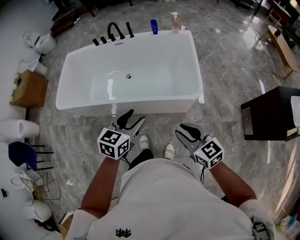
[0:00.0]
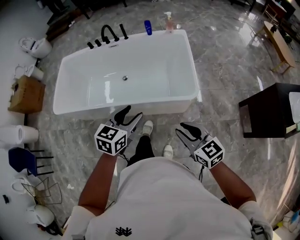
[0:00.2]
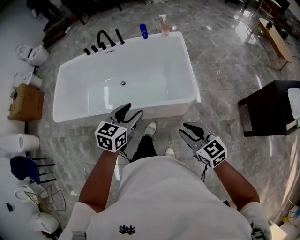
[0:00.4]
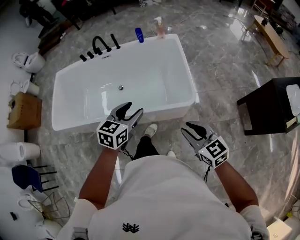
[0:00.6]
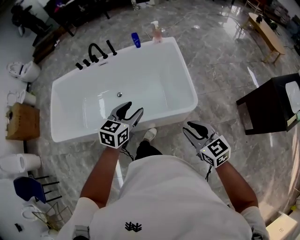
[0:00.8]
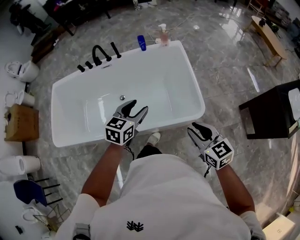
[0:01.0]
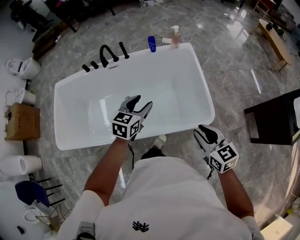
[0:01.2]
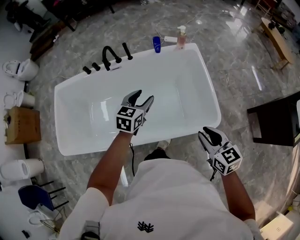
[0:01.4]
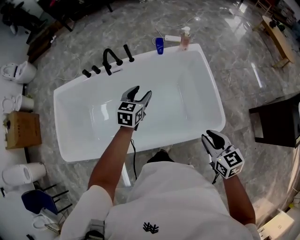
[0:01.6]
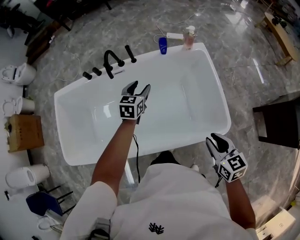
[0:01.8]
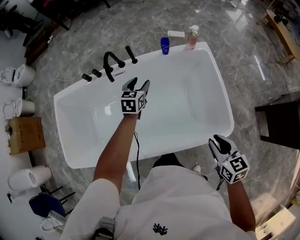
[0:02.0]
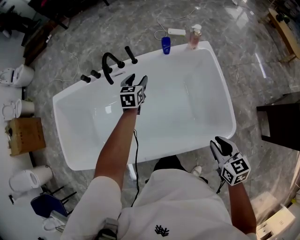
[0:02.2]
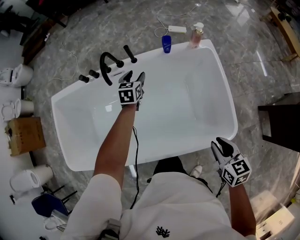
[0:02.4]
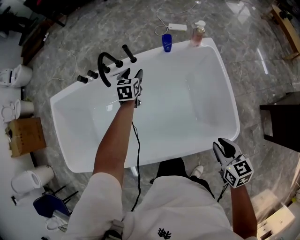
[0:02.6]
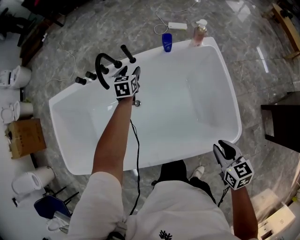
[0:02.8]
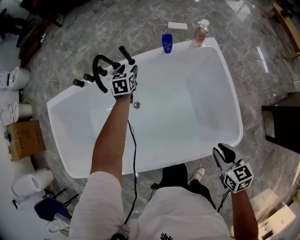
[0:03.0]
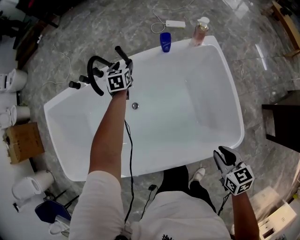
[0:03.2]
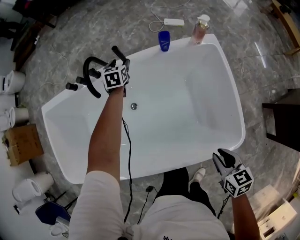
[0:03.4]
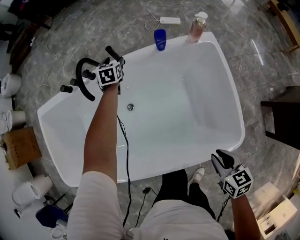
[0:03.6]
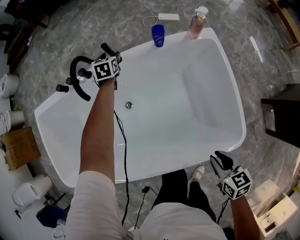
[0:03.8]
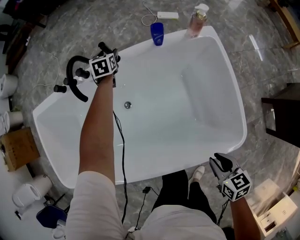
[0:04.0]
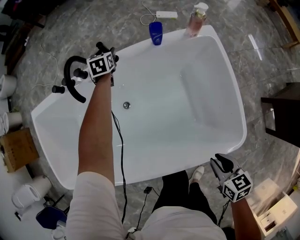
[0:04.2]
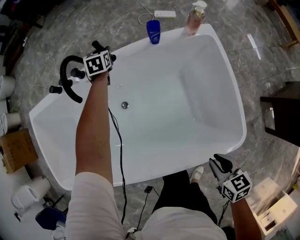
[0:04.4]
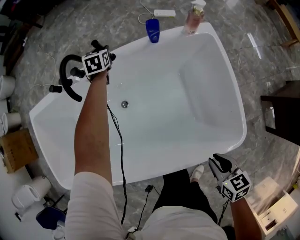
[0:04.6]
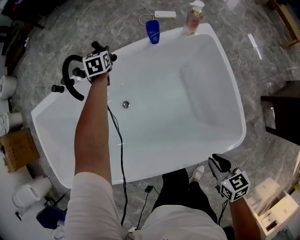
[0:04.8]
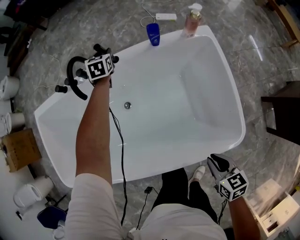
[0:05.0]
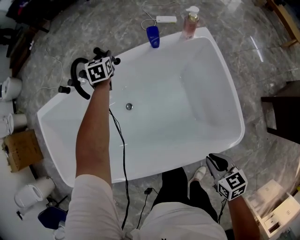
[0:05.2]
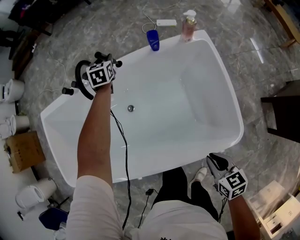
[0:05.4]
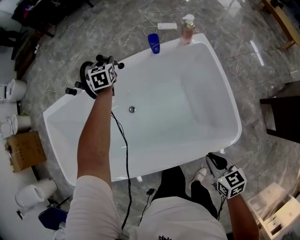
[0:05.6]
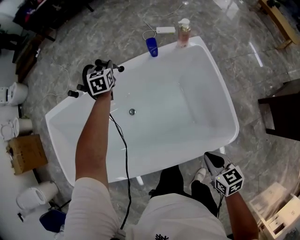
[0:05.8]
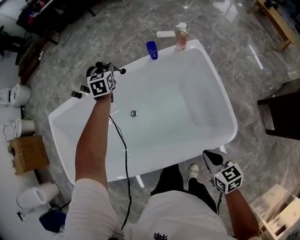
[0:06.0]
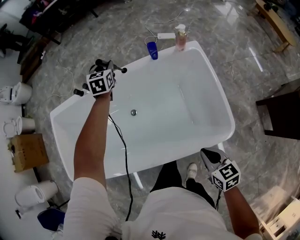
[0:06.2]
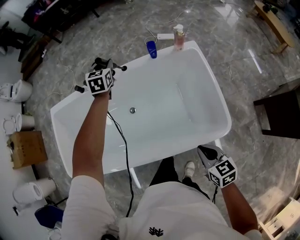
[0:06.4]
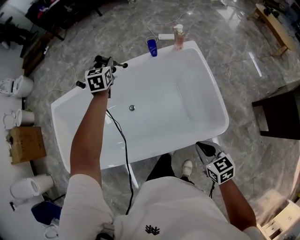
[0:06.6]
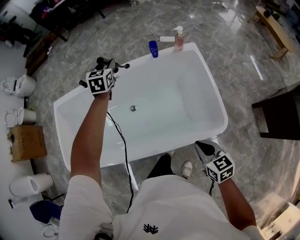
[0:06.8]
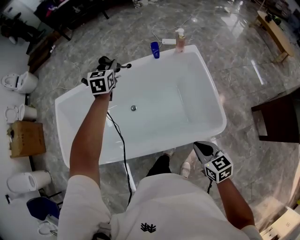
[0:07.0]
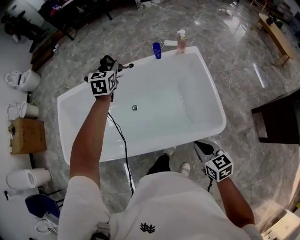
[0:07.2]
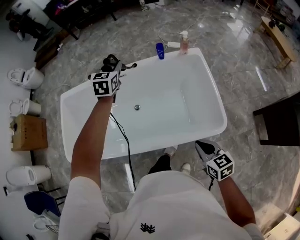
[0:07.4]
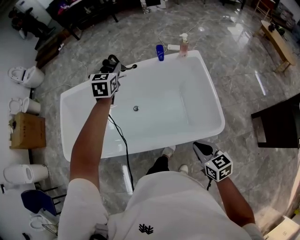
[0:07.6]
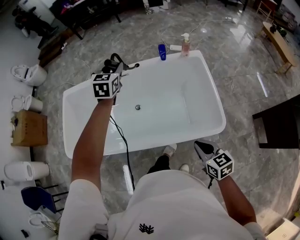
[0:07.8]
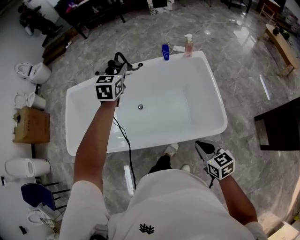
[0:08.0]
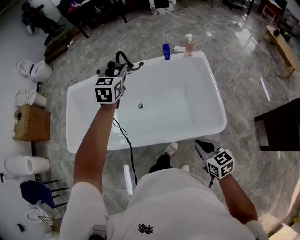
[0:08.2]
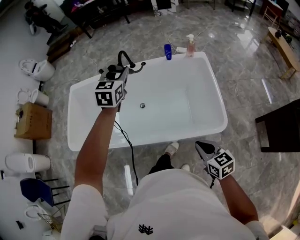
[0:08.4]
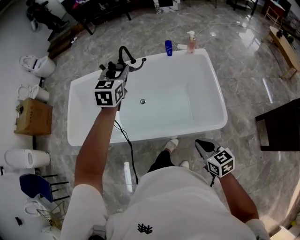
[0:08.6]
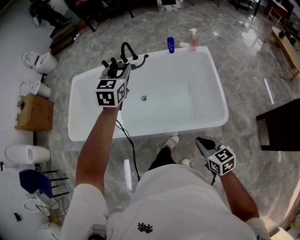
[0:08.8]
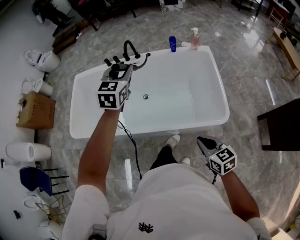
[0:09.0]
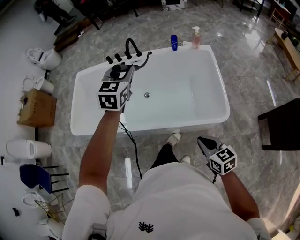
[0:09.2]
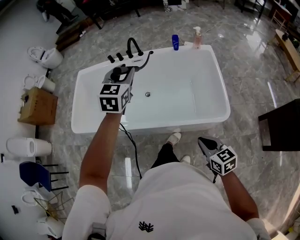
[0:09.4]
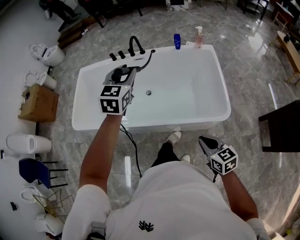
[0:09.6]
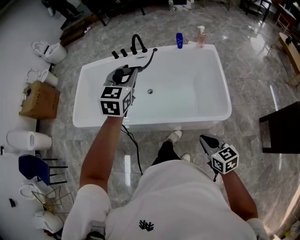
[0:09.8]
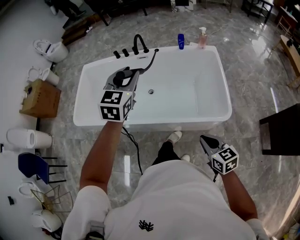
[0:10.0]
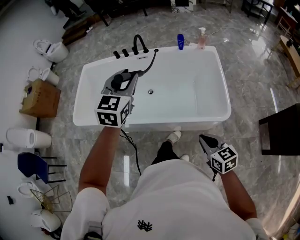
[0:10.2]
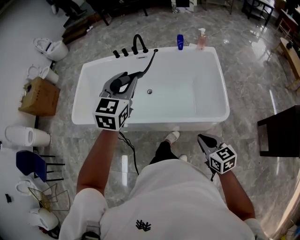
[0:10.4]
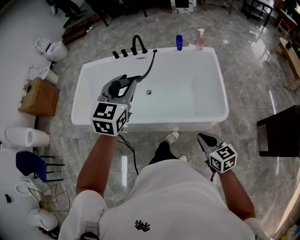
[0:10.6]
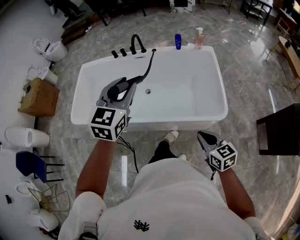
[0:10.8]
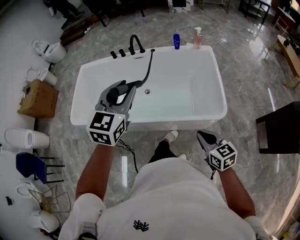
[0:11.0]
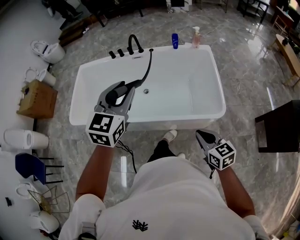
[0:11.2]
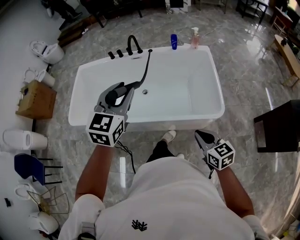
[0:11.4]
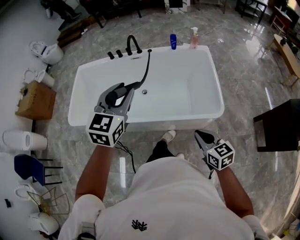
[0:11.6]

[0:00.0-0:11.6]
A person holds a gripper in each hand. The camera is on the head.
0:00.0 to 0:01.4: Both grippers travel together forward, about 35 cm. The right gripper changes its angle by about 20 degrees.
0:01.4 to 0:02.8: The right gripper moves forward and downward, approximately 20 cm. The left gripper is displaced forward and downward by about 40 cm.
0:02.8 to 0:04.4: The right gripper shifts some 10 cm downward, while the left gripper travels forward and downward by approximately 20 cm.
0:04.4 to 0:05.8: The right gripper shifts about 10 cm upward, and closes its fingers, while the left gripper shifts roughly 20 cm upward and backward.
0:05.8 to 0:07.2: The left gripper is displaced backward and upward by about 30 cm. The right gripper goes roughly 15 cm backward and upward.
0:07.2 to 0:08.8: The right gripper is displaced backward by approximately 10 cm; the left gripper is displaced backward and upward by approximately 25 cm.
0:08.8 to 0:10.2: The left gripper travels backward by approximately 15 cm. Meanwhile the right gripper is displaced backward by about 5 cm.
0:10.2 to 0:11.6: The left gripper moves backward, roughly 10 cm.

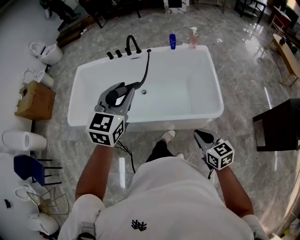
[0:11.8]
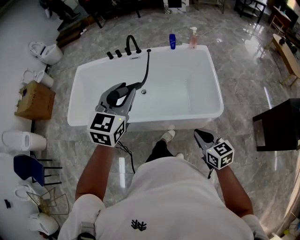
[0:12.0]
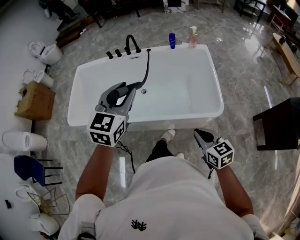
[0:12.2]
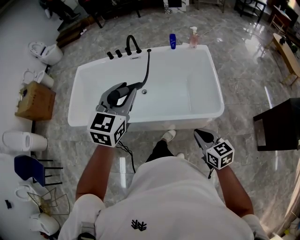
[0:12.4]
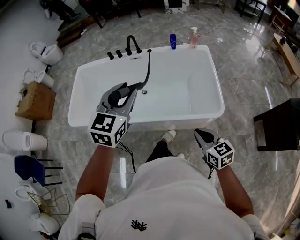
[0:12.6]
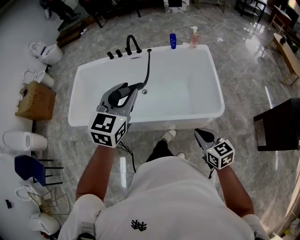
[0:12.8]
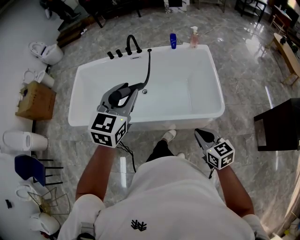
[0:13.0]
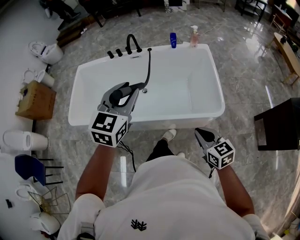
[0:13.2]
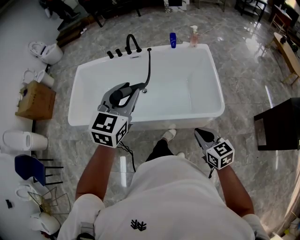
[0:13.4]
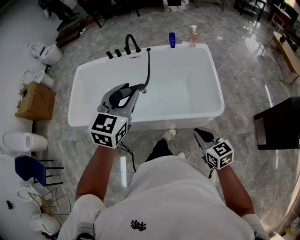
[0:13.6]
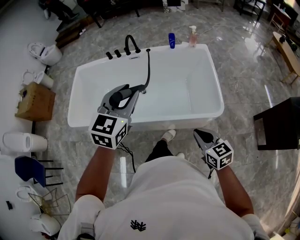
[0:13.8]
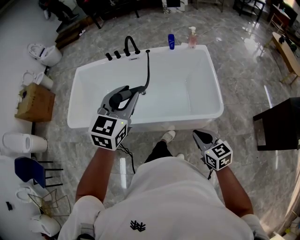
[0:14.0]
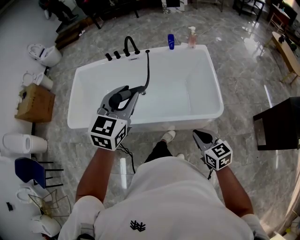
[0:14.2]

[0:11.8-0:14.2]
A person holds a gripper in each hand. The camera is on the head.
0:11.8 to 0:13.0: Both grippers stay about where they are.
0:13.0 to 0:14.2: Neither gripper changes place.

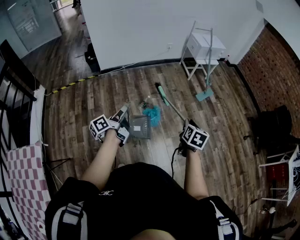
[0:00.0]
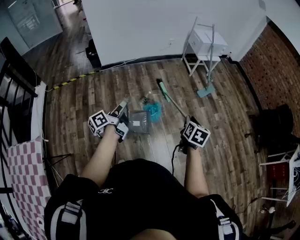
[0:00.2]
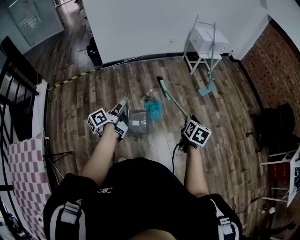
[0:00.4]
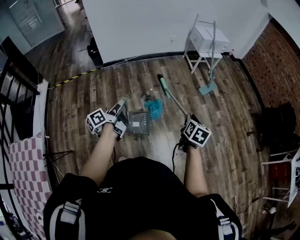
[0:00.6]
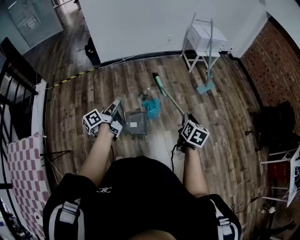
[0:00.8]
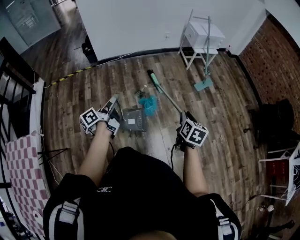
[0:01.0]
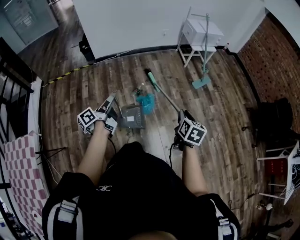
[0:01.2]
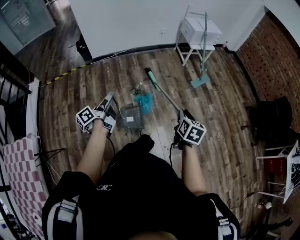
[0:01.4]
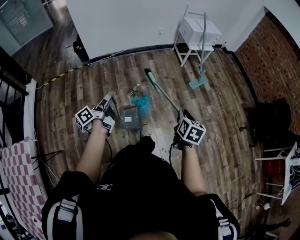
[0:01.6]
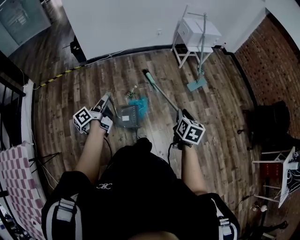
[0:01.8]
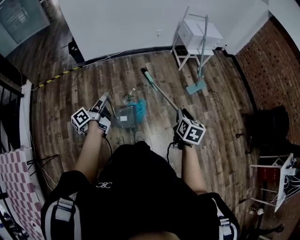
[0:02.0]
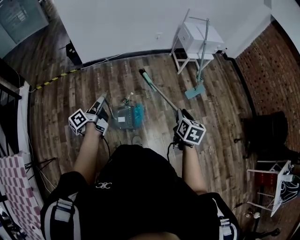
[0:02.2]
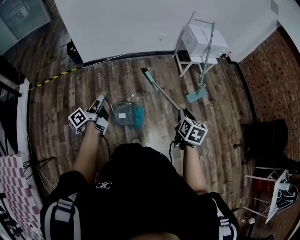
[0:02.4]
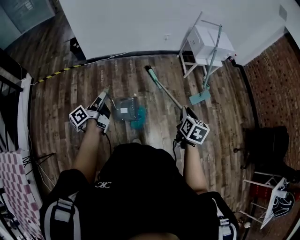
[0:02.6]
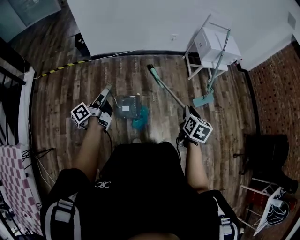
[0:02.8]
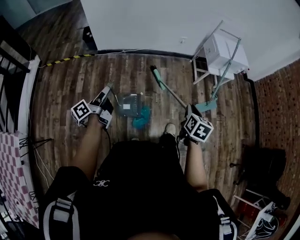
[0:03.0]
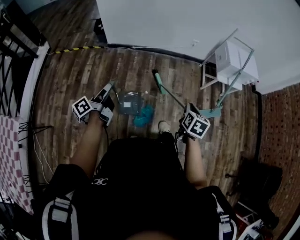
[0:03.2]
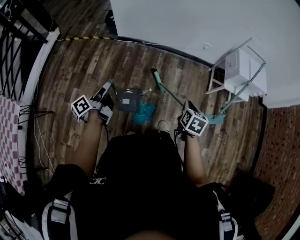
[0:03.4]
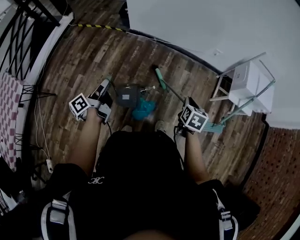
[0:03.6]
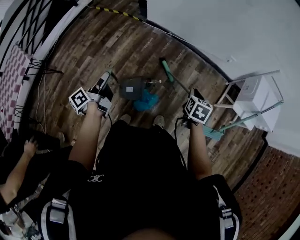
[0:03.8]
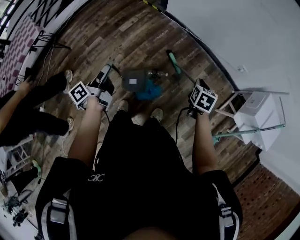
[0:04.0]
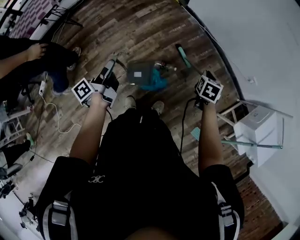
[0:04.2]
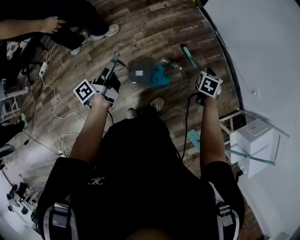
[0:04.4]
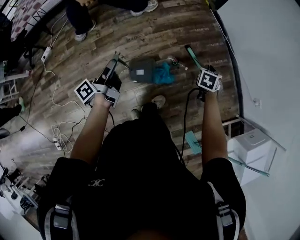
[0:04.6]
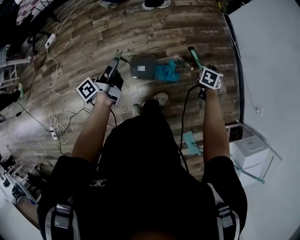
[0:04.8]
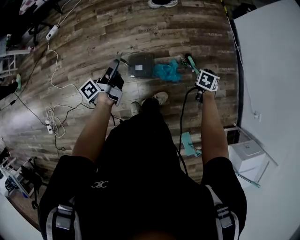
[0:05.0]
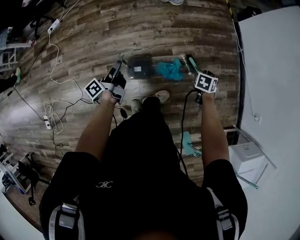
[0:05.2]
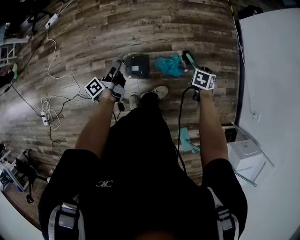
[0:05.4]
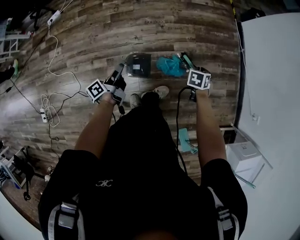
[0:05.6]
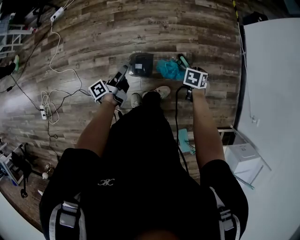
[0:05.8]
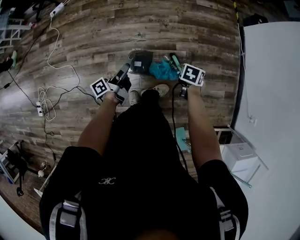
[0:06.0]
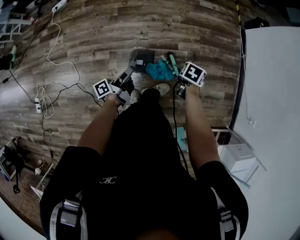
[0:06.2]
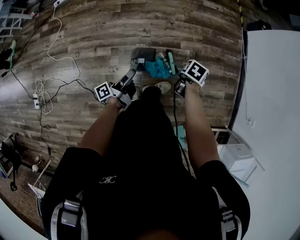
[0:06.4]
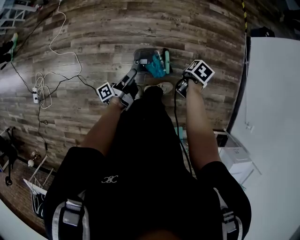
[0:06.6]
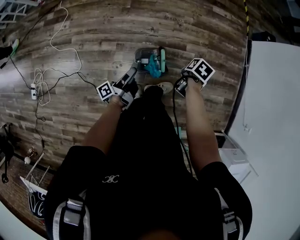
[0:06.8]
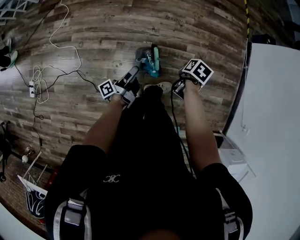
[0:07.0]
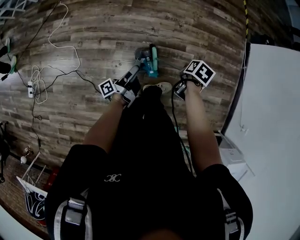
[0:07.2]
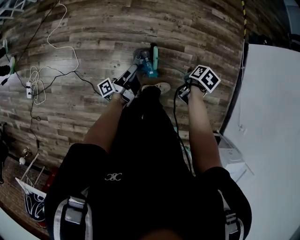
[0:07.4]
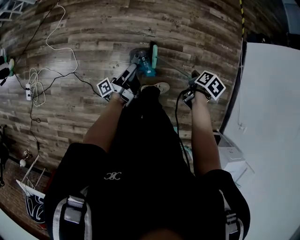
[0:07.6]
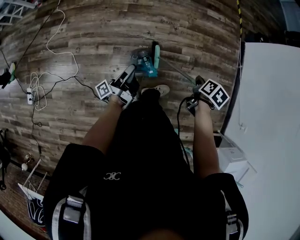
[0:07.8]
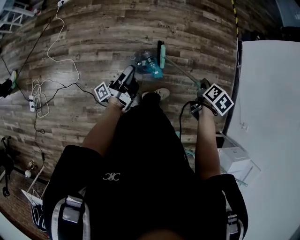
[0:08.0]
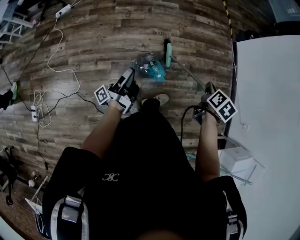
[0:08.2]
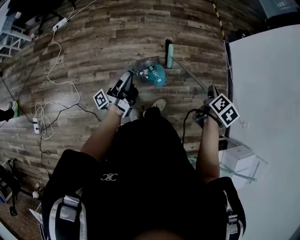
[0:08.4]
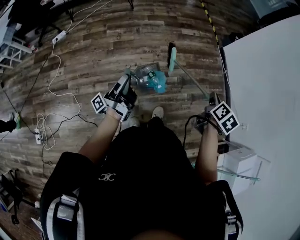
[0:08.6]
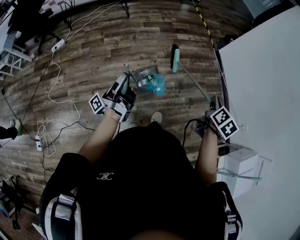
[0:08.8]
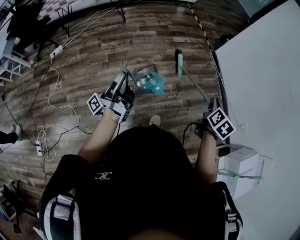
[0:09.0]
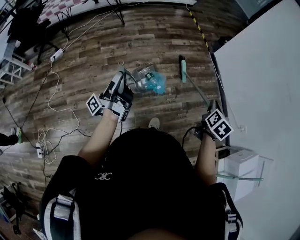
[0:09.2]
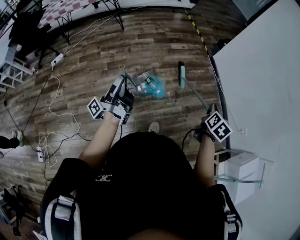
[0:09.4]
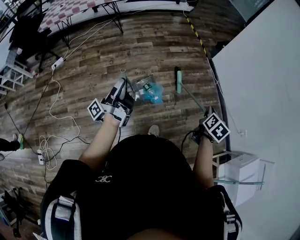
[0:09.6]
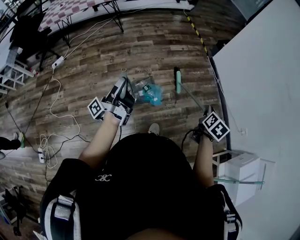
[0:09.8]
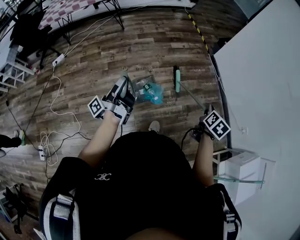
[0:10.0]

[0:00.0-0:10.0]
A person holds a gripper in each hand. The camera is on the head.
0:00.0 to 0:01.4: The right gripper changes place by some 10 cm.
0:01.4 to 0:02.8: The right gripper shifts by approximately 30 cm.
0:02.8 to 0:04.2: The right gripper changes place by some 40 cm, and turns by about 60 degrees.
0:04.2 to 0:05.8: The right gripper moves approximately 30 cm, and turns by about 40 degrees.
0:05.8 to 0:07.2: The right gripper ends up roughly 20 cm from where it was, and swivels about 30 degrees.
0:07.2 to 0:08.6: The right gripper moves upward, roughly 25 cm, and angles its fingers upward, by roughly 30 degrees.
0:08.6 to 0:10.0: The right gripper shifts by some 10 cm.
